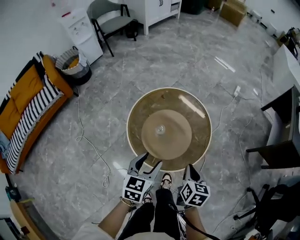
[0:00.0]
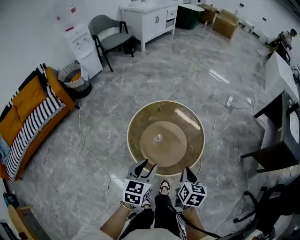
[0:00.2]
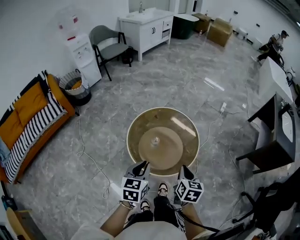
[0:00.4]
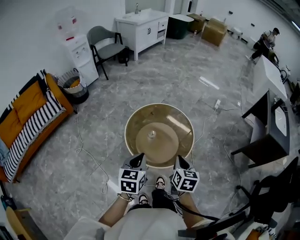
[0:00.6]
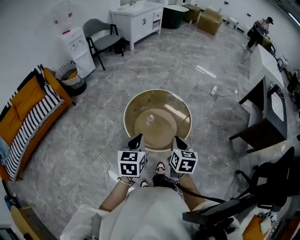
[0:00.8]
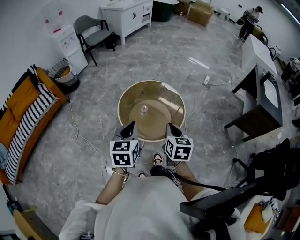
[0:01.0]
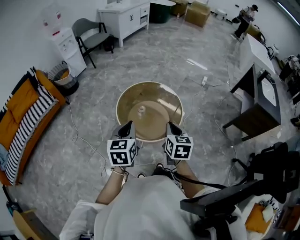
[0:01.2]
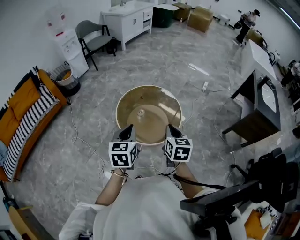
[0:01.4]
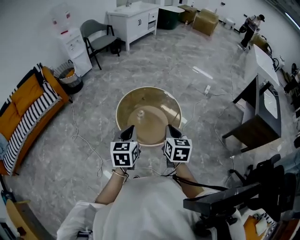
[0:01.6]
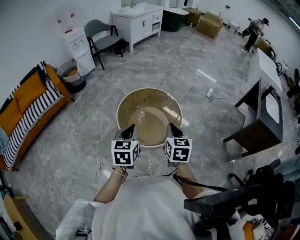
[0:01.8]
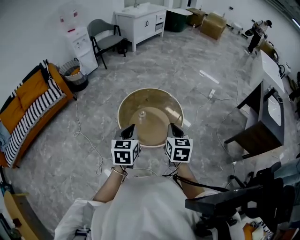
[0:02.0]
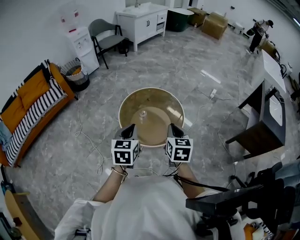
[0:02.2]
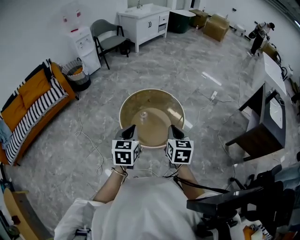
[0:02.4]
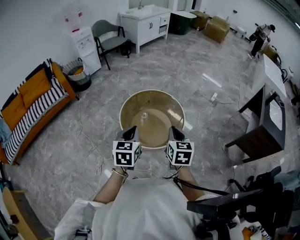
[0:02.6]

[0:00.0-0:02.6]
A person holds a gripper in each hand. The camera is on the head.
0:00.0 to 0:01.2: The grippers both shift upward and backward by roughly 25 cm. The left gripper closes up.
0:01.2 to 0:02.6: Both grippers move to the right, roughly 5 cm.

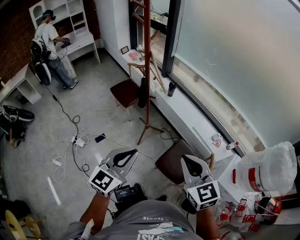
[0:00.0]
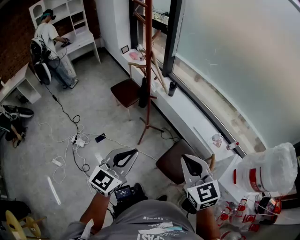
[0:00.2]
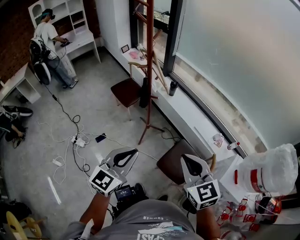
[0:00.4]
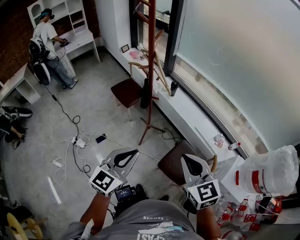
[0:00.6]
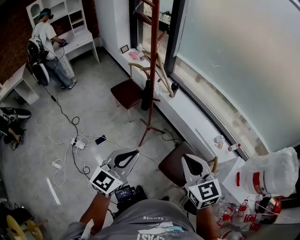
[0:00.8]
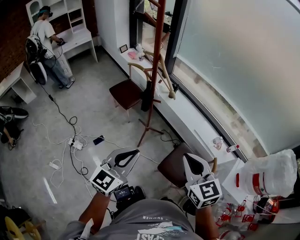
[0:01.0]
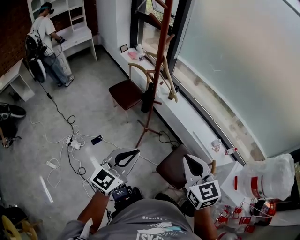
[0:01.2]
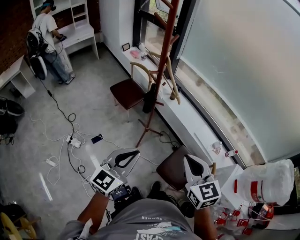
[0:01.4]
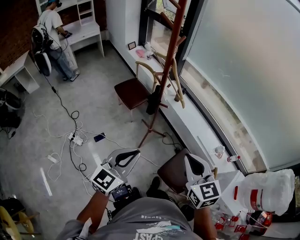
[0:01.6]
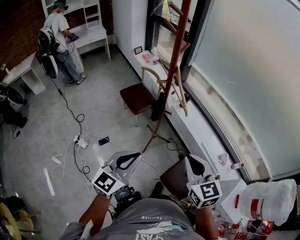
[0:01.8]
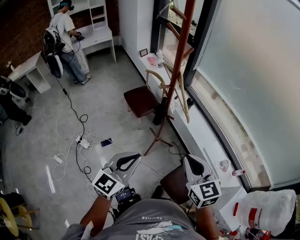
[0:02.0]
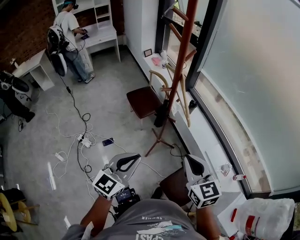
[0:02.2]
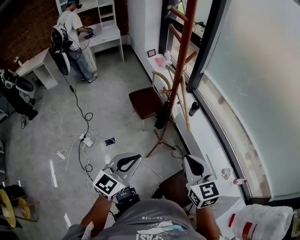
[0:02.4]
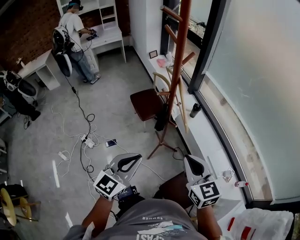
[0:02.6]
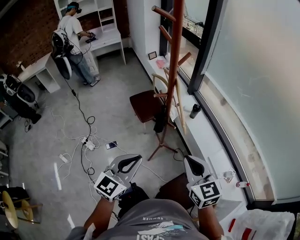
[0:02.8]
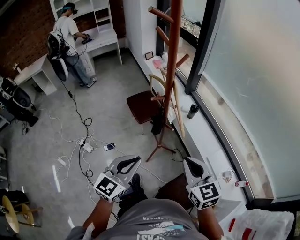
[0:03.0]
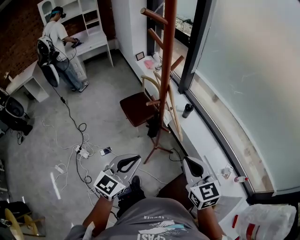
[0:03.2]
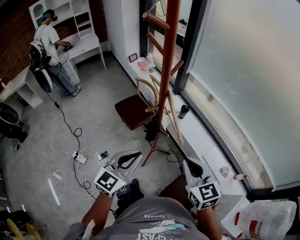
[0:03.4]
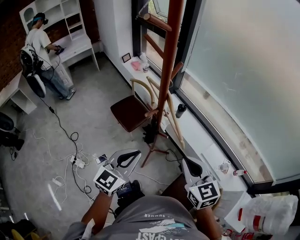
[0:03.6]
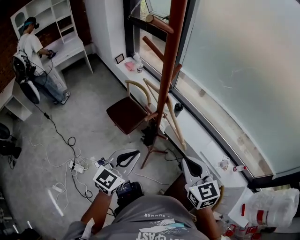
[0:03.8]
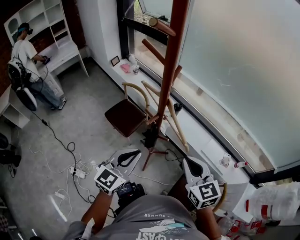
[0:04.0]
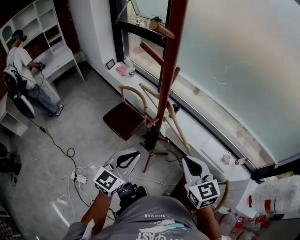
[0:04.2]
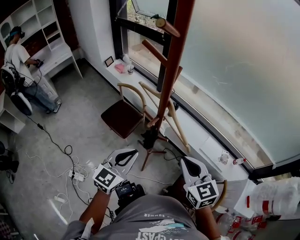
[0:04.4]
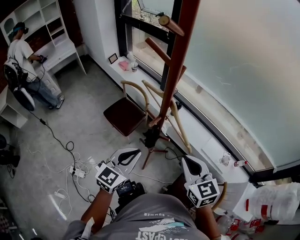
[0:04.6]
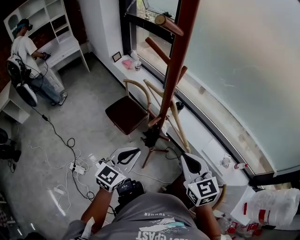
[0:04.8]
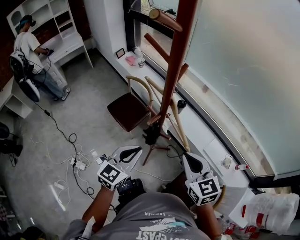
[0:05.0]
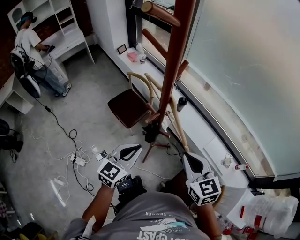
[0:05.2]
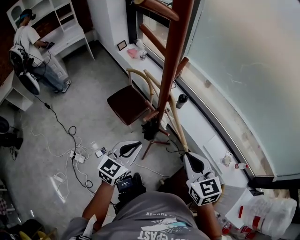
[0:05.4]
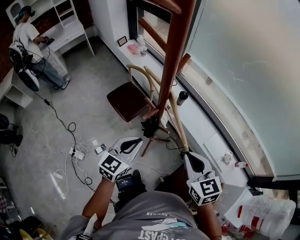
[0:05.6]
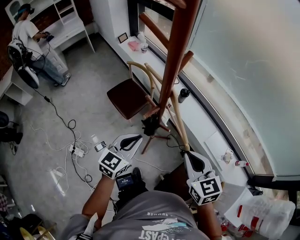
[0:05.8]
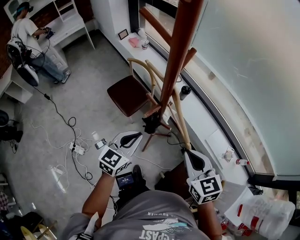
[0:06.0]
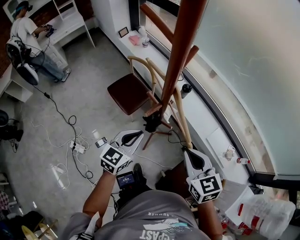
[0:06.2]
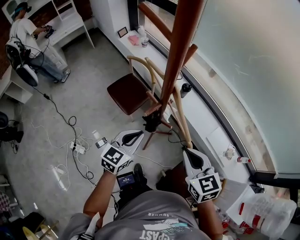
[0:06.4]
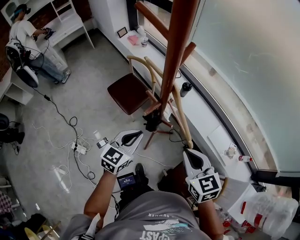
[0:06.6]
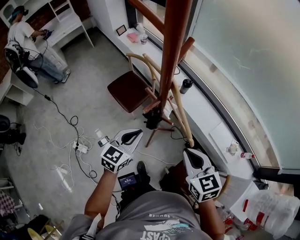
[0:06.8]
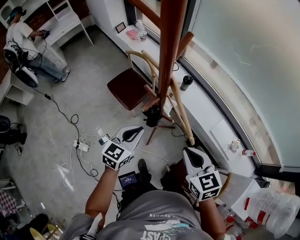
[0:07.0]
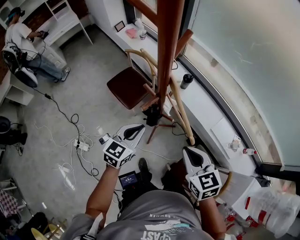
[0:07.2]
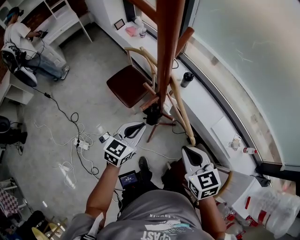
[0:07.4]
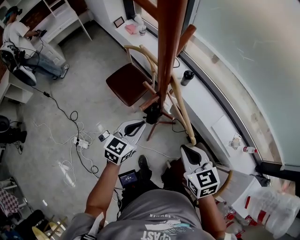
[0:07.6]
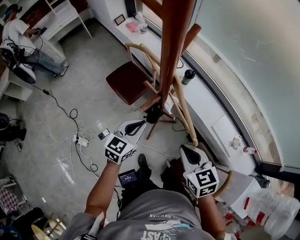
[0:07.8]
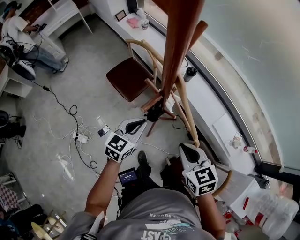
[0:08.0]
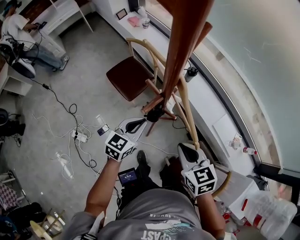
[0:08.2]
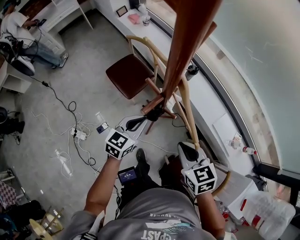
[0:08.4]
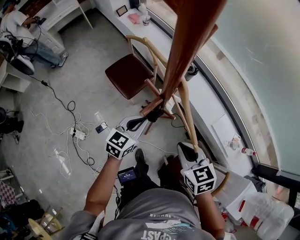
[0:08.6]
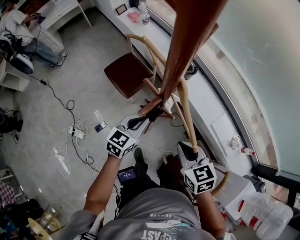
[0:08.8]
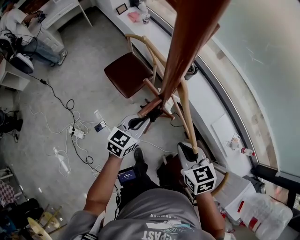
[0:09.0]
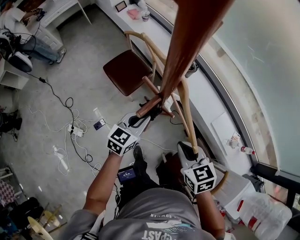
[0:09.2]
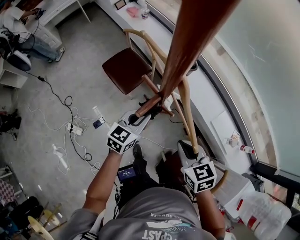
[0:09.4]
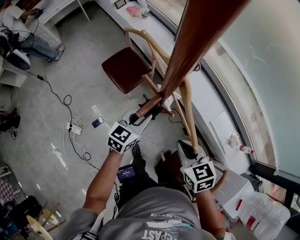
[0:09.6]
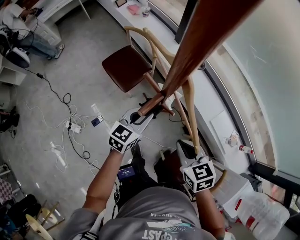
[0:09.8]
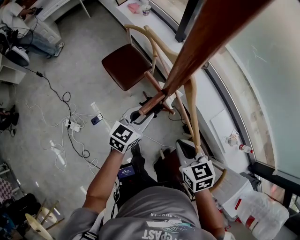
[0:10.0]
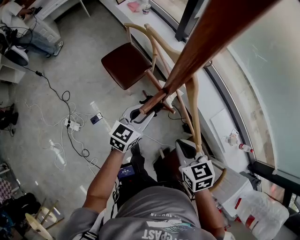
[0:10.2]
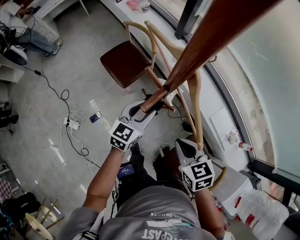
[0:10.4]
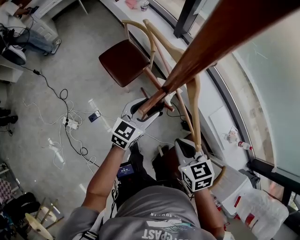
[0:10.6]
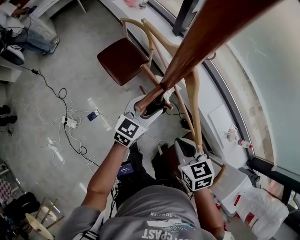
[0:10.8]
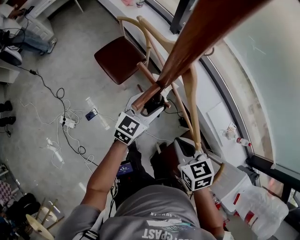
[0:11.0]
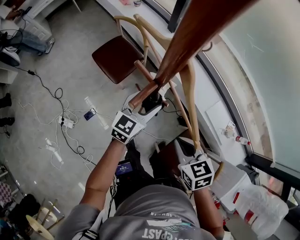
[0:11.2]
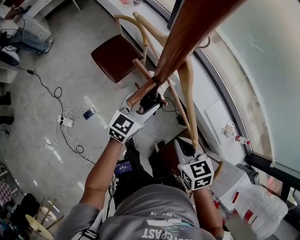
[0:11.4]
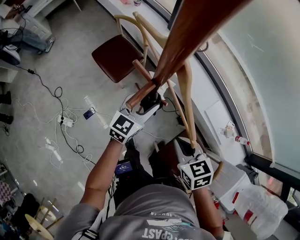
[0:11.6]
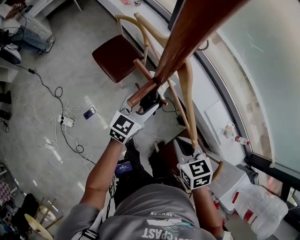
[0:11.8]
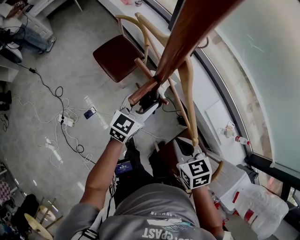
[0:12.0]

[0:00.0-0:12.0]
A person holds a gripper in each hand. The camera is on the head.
0:00.0 to 0:01.6: The left gripper goes about 15 cm to the left and forward, while the right gripper moves forward and to the left, roughly 15 cm.
0:01.6 to 0:03.0: The grippers both shift forward by roughly 15 cm.
0:03.0 to 0:04.4: The right gripper shifts approximately 15 cm to the left and forward, and swivels roughly 20 degrees, while the left gripper heads forward and to the left, covering some 20 cm, and changes its angle by roughly 20 degrees.
0:04.4 to 0:06.0: The left gripper moves downward and forward, some 10 cm, while the right gripper travels downward by some 5 cm.
0:06.0 to 0:07.6: Both grippers travel together downward, approximately 5 cm.
0:07.6 to 0:09.0: Both grippers travel together downward, about 5 cm.
0:09.0 to 0:10.4: The left gripper opens its fingers.
0:10.4 to 0:12.0: The grippers move only a little.

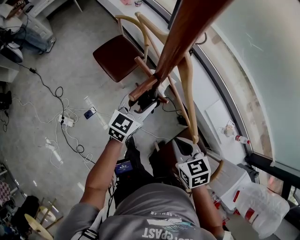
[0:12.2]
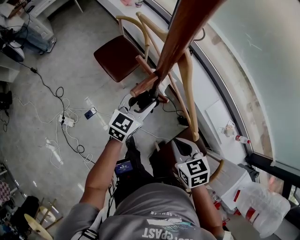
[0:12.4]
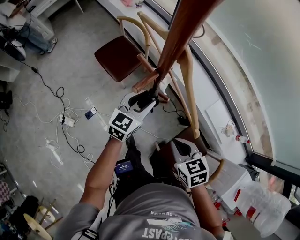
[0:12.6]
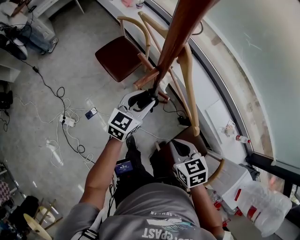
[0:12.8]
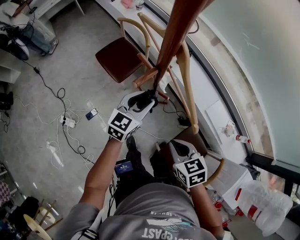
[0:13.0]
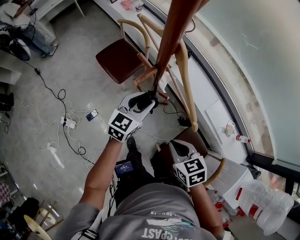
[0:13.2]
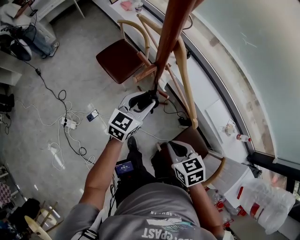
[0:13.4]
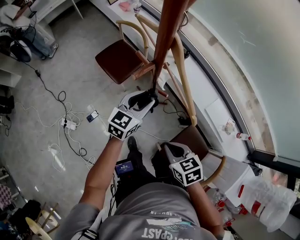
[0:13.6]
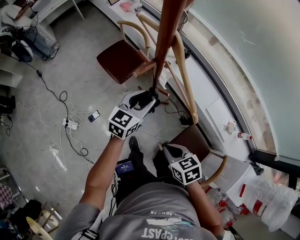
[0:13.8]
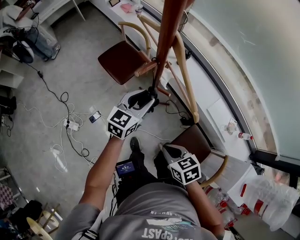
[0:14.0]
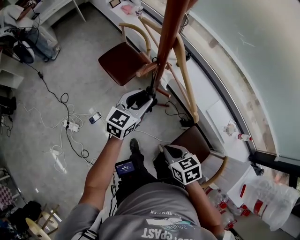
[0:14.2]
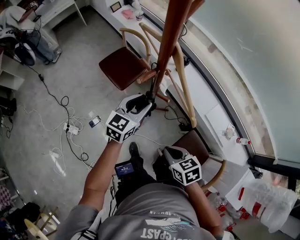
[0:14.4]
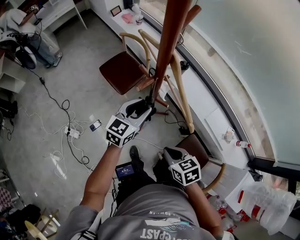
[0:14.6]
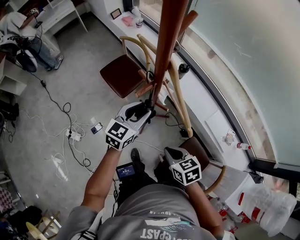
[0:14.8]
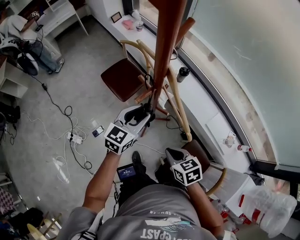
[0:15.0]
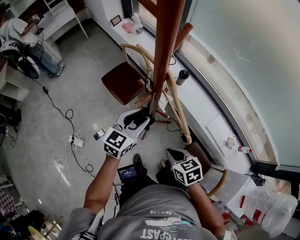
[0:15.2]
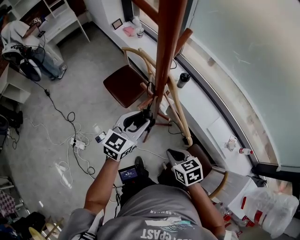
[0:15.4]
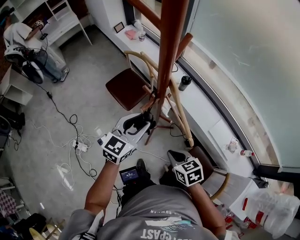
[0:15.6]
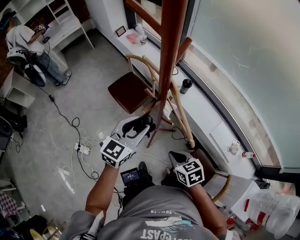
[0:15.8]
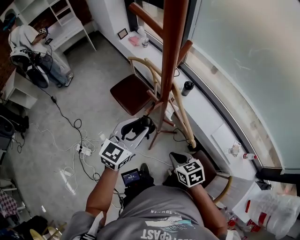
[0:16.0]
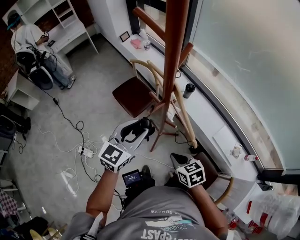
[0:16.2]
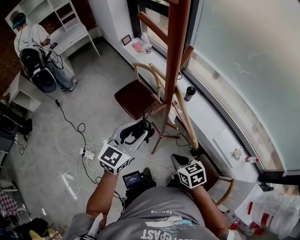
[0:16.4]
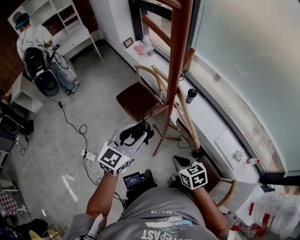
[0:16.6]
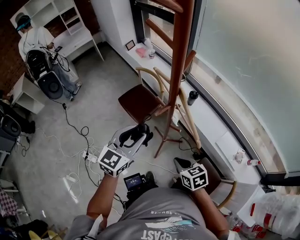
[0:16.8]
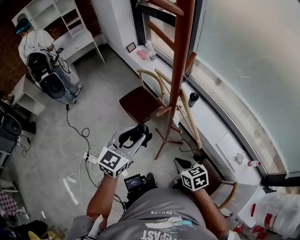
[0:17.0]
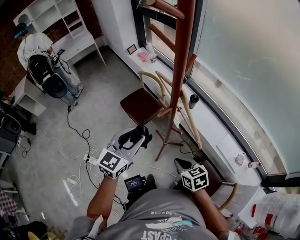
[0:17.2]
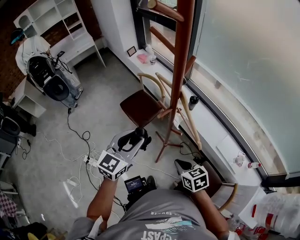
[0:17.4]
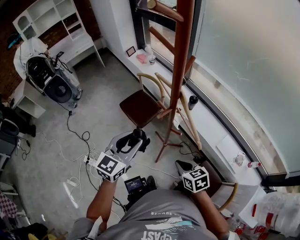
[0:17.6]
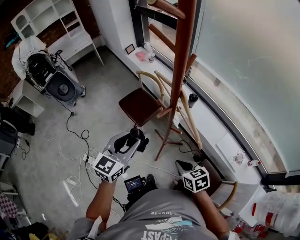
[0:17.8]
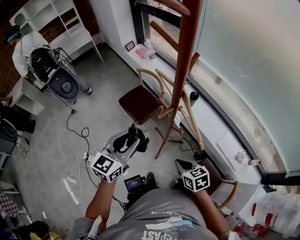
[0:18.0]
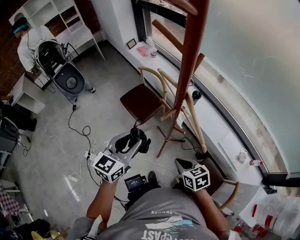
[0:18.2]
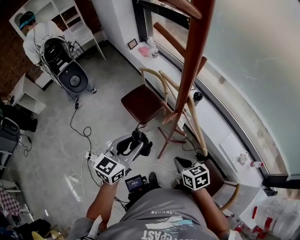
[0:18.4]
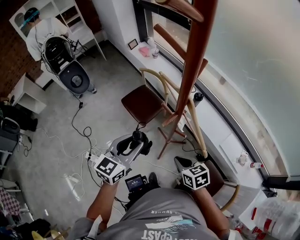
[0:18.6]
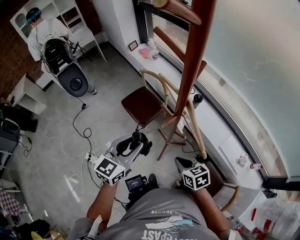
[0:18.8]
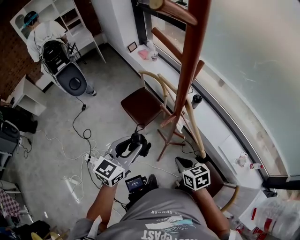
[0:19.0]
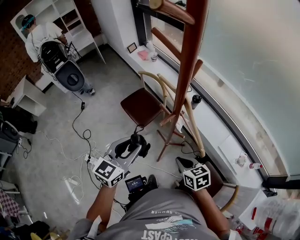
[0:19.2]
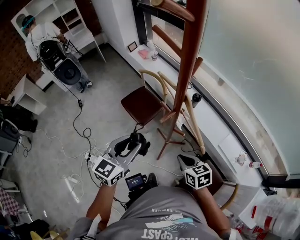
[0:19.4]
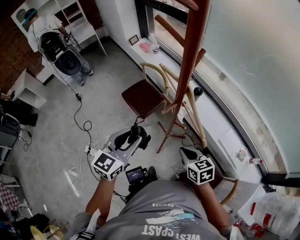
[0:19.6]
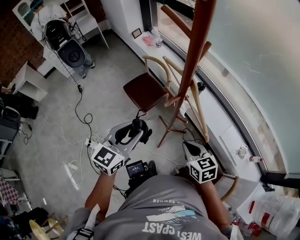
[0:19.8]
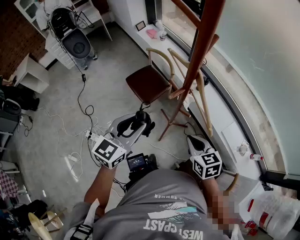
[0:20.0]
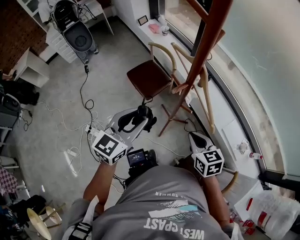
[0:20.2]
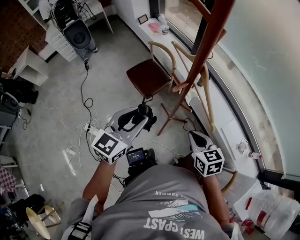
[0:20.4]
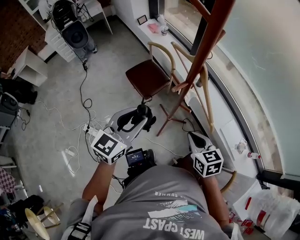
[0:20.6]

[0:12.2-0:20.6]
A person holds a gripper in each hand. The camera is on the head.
0:12.2 to 0:13.6: The right gripper is displaced backward by approximately 10 cm.
0:13.6 to 0:15.0: The left gripper goes some 5 cm upward.
0:15.0 to 0:16.4: The left gripper moves upward and to the left, about 15 cm.
0:16.4 to 0:17.8: The left gripper travels to the left by approximately 5 cm.
0:17.8 to 0:20.6: The grippers make only small movements.

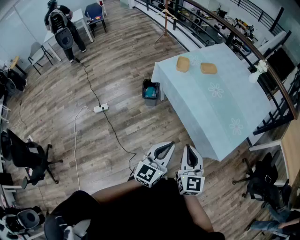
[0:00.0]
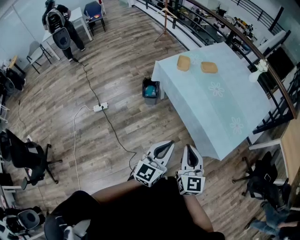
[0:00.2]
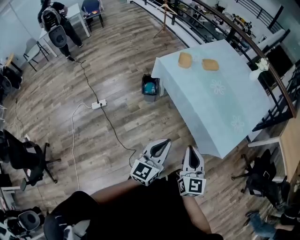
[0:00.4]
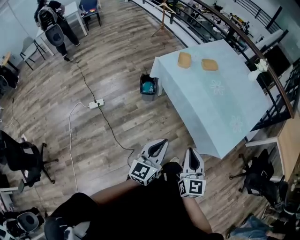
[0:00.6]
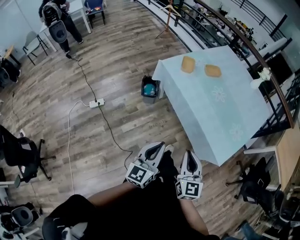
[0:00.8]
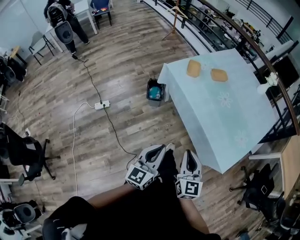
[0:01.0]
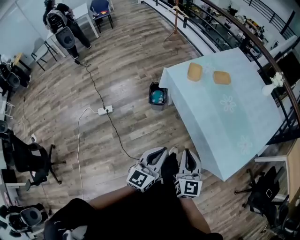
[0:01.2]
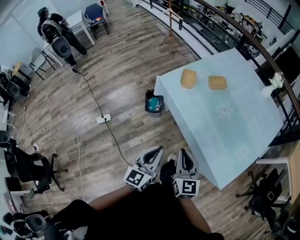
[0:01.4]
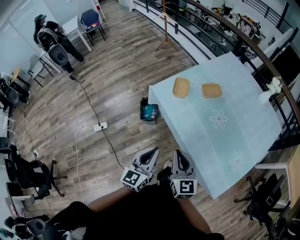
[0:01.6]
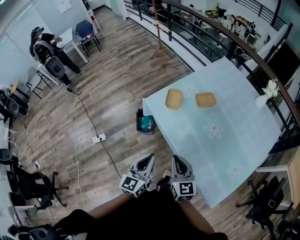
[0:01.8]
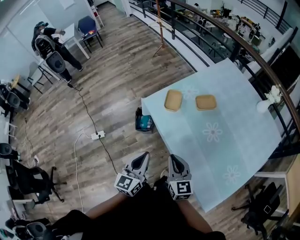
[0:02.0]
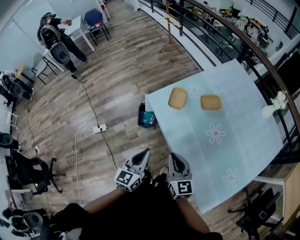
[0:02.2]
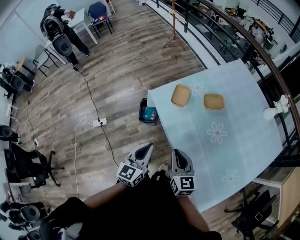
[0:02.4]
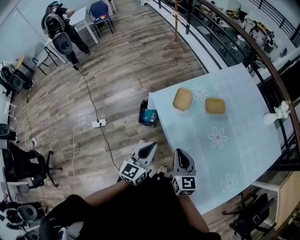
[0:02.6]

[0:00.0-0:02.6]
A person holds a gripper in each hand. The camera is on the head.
0:00.0 to 0:01.2: The two grippers go some 15 cm forward and to the left.
0:01.2 to 0:02.6: Both grippers move forward, approximately 30 cm.
